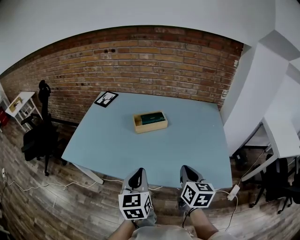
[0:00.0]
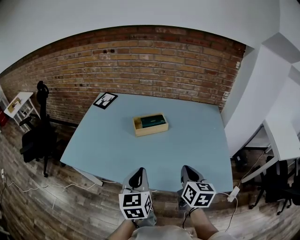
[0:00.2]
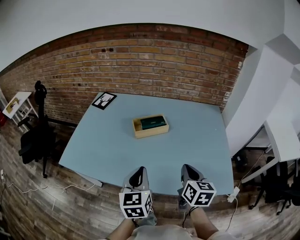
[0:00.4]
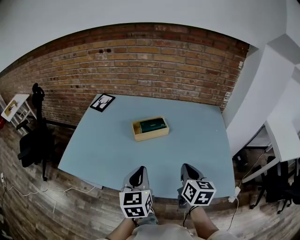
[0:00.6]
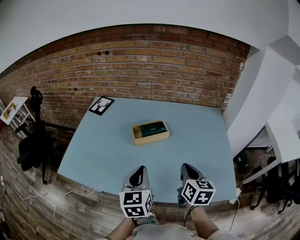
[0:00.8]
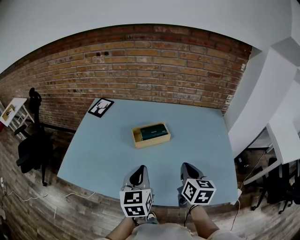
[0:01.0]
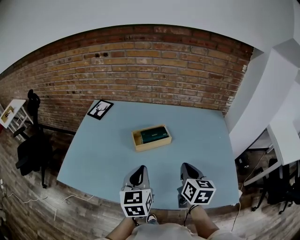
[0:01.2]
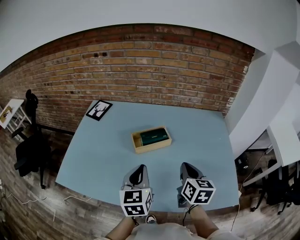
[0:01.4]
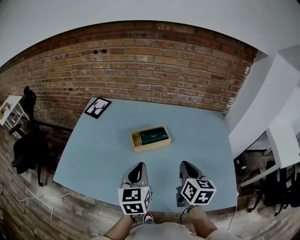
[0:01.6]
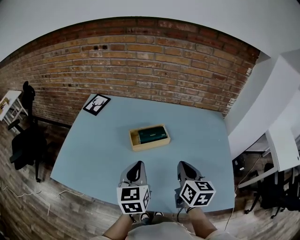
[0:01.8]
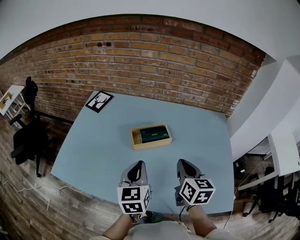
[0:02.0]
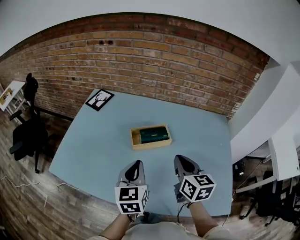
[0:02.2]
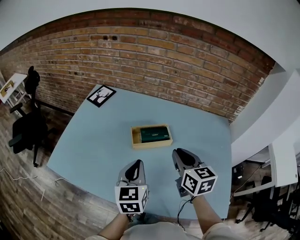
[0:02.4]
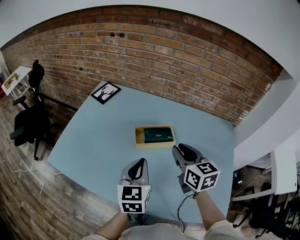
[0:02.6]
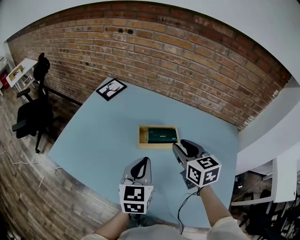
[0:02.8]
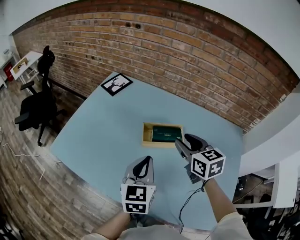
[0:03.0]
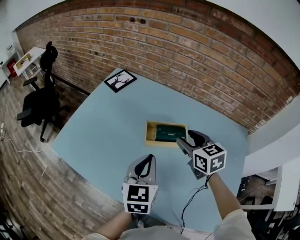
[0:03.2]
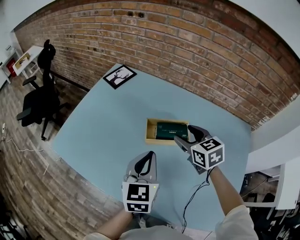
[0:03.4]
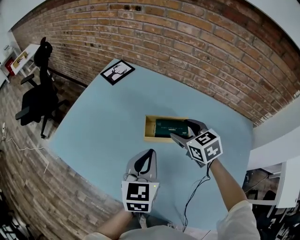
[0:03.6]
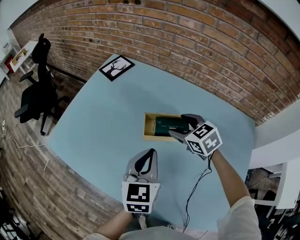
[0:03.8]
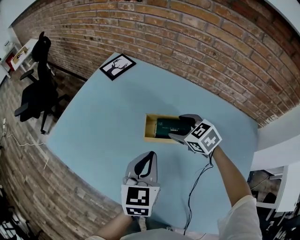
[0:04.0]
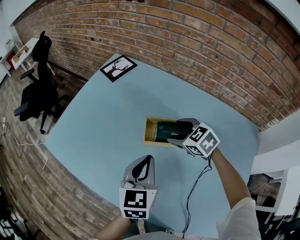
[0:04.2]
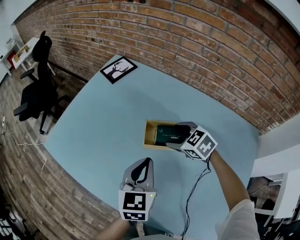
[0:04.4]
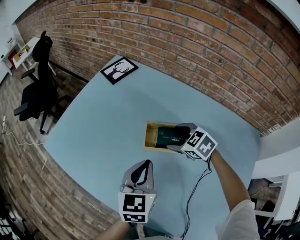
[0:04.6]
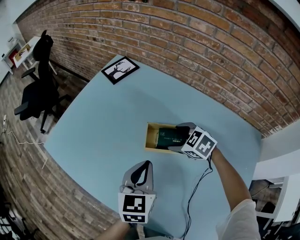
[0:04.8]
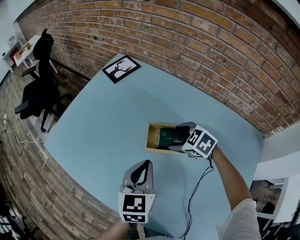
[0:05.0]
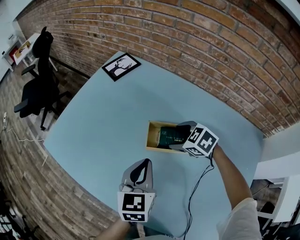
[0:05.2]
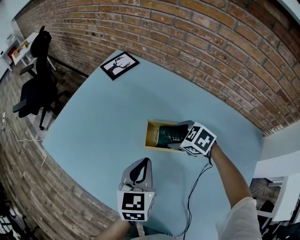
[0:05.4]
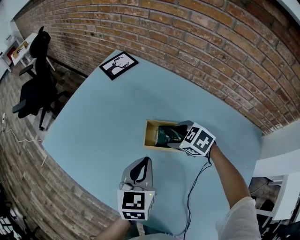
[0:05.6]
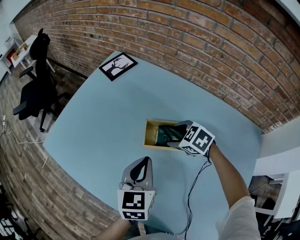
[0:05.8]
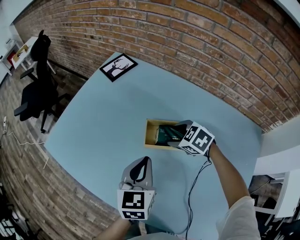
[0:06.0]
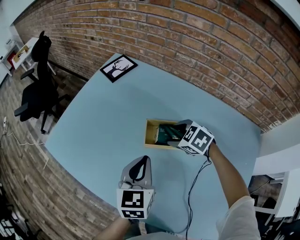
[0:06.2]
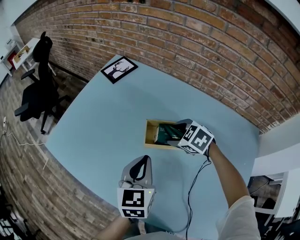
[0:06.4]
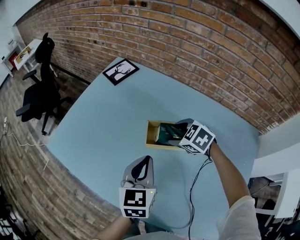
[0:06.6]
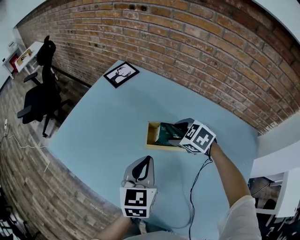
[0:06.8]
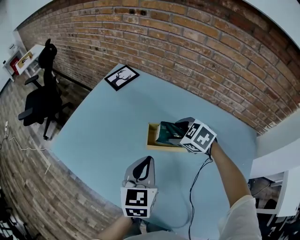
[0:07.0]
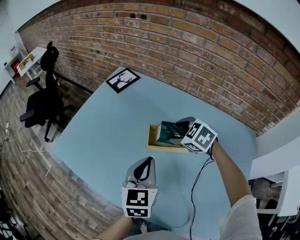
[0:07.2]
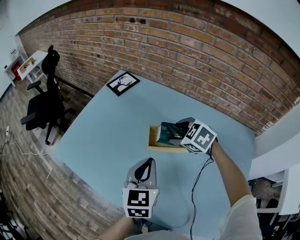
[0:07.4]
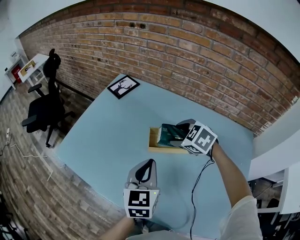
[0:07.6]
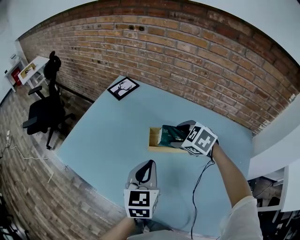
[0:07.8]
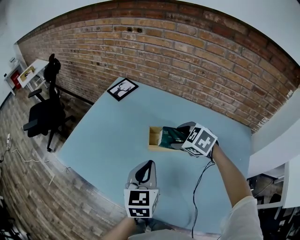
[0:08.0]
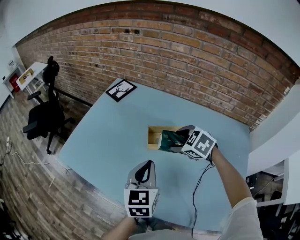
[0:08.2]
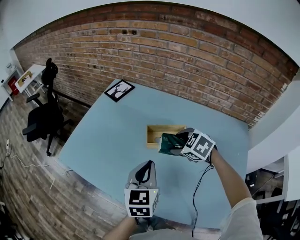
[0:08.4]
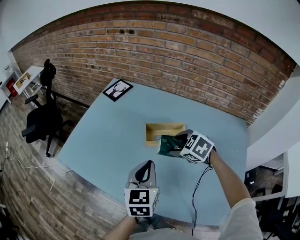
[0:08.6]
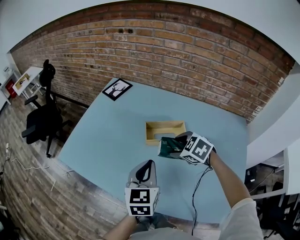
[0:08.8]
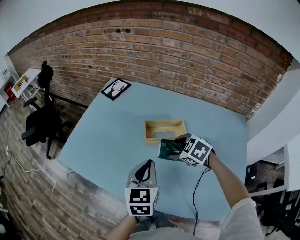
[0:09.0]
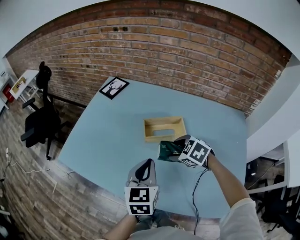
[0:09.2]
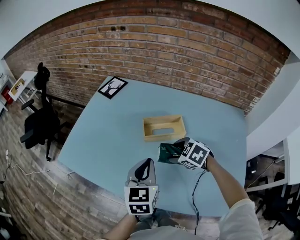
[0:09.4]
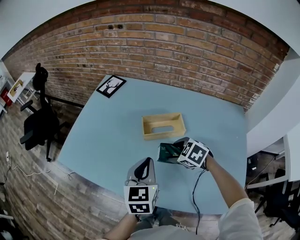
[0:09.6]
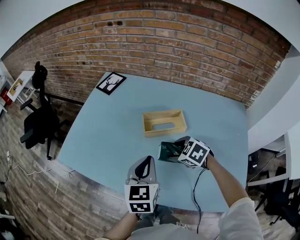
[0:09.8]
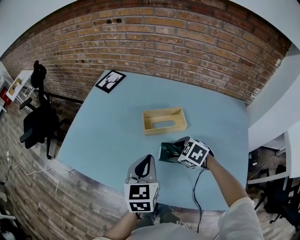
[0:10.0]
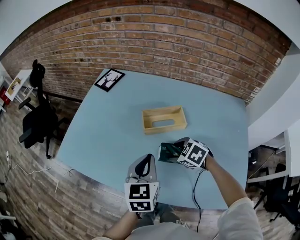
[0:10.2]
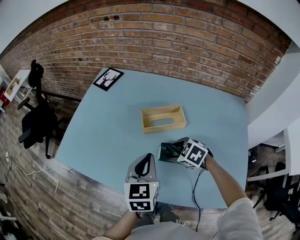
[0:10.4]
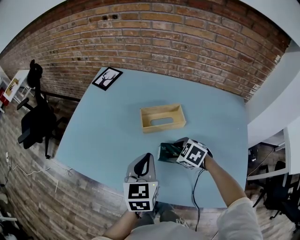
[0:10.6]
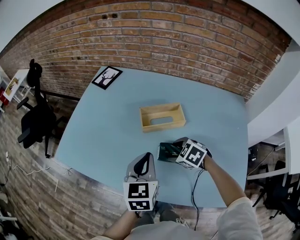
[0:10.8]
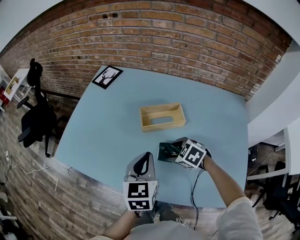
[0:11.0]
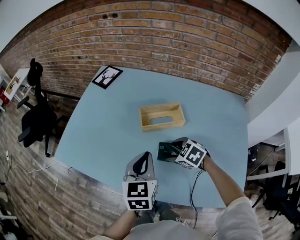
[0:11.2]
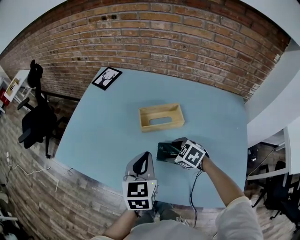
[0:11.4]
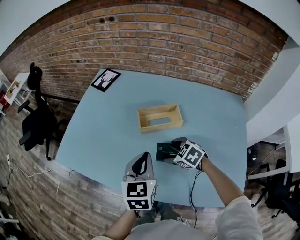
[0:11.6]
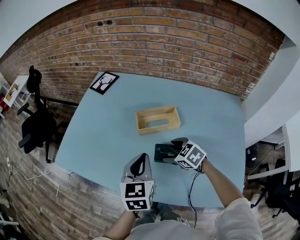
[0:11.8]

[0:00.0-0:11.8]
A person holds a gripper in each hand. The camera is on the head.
0:00.0 to 0:01.4: Both grippers move forward, about 20 cm.
0:01.4 to 0:03.0: The right gripper travels forward by about 15 cm, changes its angle by roughly 40 degrees, and opens its fingers; the left gripper is displaced forward by some 5 cm.
0:03.0 to 0:04.4: The left gripper moves downward and forward, some 10 cm. Meanwhile the right gripper travels downward and forward by roughly 20 cm, rotates about 40 degrees, and opens up.
0:04.4 to 0:06.0: The grippers make only small movements.
0:06.0 to 0:07.4: The left gripper shifts some 5 cm upward. Meanwhile the right gripper is displaced upward by roughly 10 cm.
0:07.4 to 0:08.8: The right gripper shifts roughly 10 cm backward, while the left gripper heads backward, covering approximately 5 cm.
0:08.8 to 0:10.4: The right gripper travels downward and backward by roughly 10 cm.
0:10.4 to 0:11.8: The grippers make only small movements.

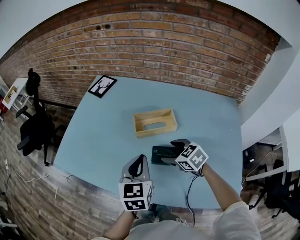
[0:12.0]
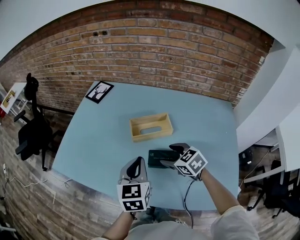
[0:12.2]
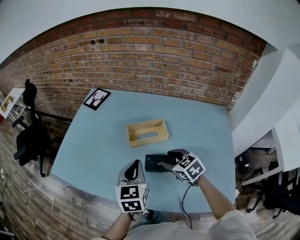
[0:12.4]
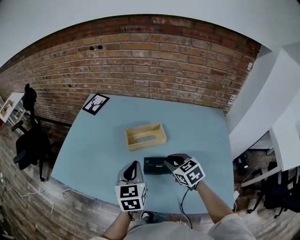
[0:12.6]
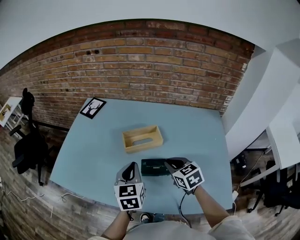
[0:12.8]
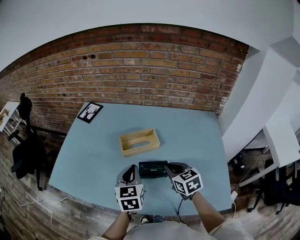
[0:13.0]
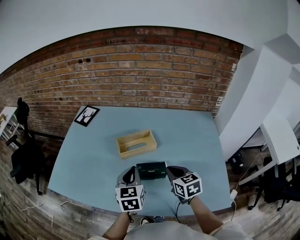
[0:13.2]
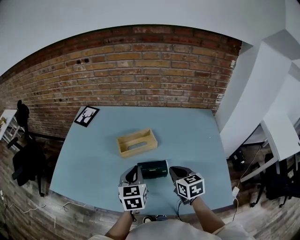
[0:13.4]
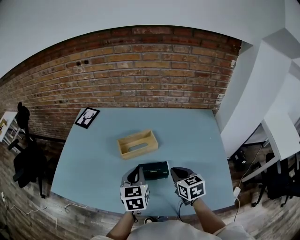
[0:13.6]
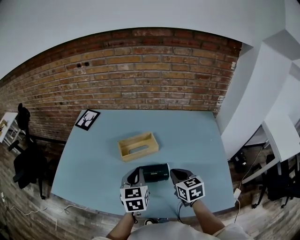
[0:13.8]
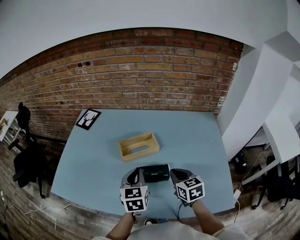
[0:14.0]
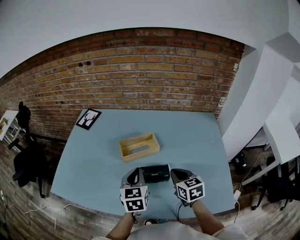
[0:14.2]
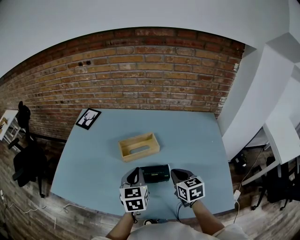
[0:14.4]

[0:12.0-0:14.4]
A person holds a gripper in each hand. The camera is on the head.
0:12.0 to 0:13.2: The right gripper travels to the right, backward and upward by approximately 10 cm, turns by about 40 degrees, and closes up.
0:13.2 to 0:14.4: The grippers stay close to where they were, moving slightly.

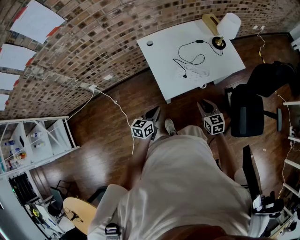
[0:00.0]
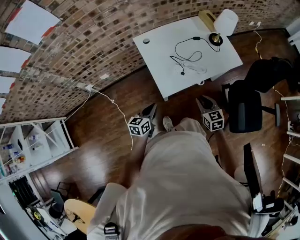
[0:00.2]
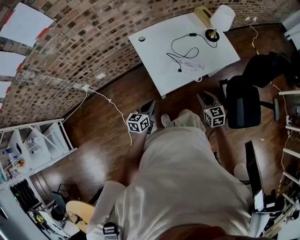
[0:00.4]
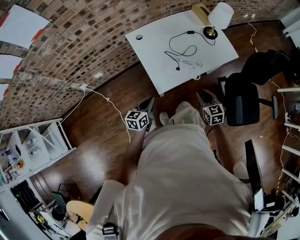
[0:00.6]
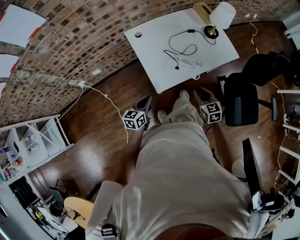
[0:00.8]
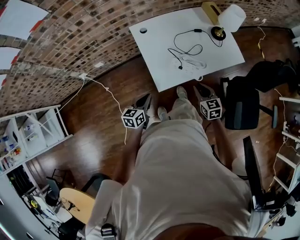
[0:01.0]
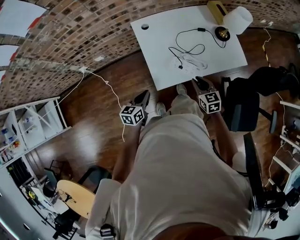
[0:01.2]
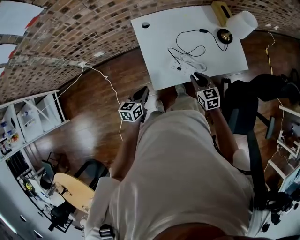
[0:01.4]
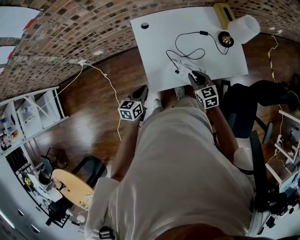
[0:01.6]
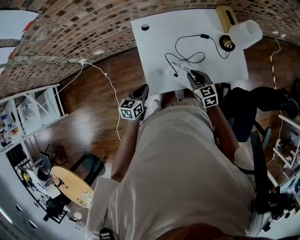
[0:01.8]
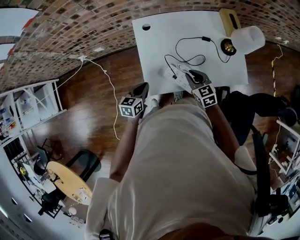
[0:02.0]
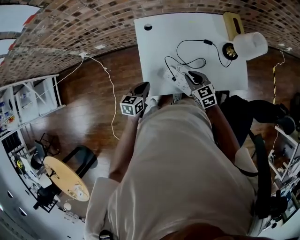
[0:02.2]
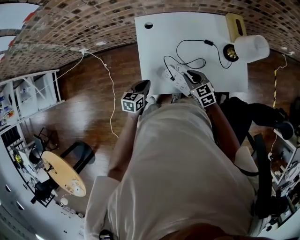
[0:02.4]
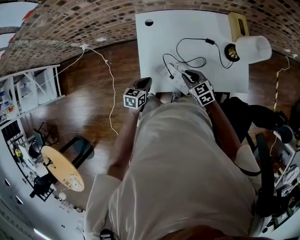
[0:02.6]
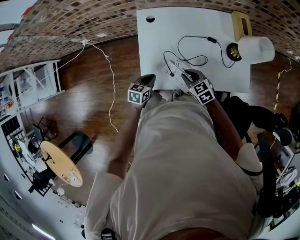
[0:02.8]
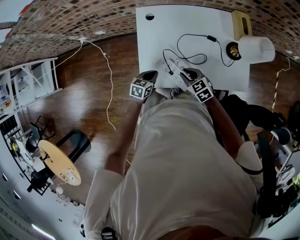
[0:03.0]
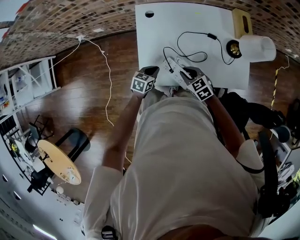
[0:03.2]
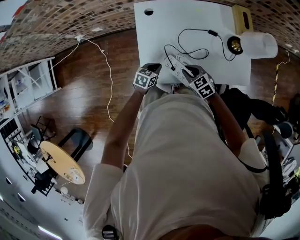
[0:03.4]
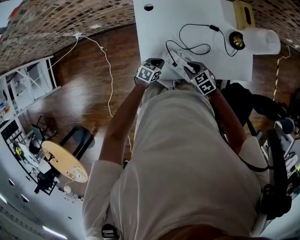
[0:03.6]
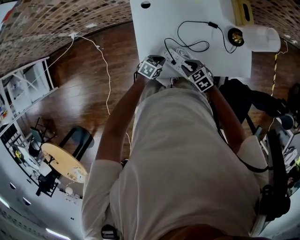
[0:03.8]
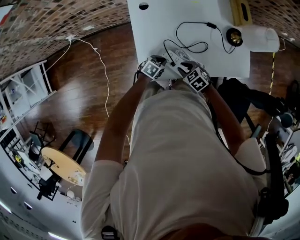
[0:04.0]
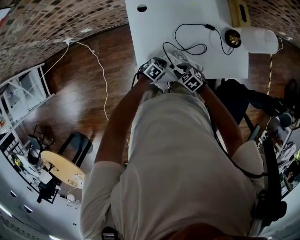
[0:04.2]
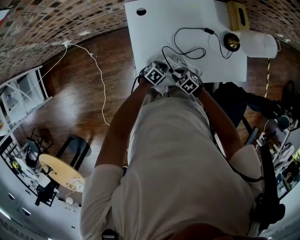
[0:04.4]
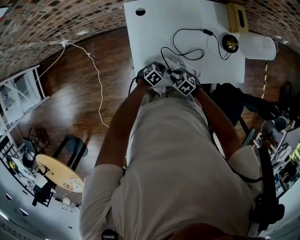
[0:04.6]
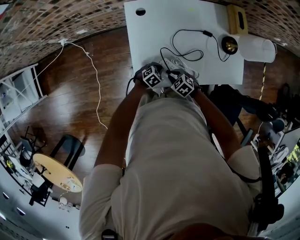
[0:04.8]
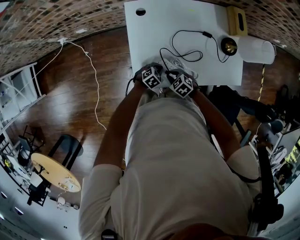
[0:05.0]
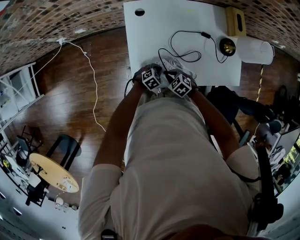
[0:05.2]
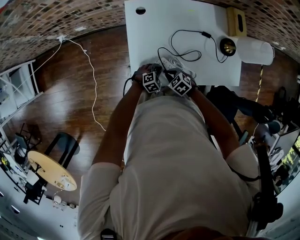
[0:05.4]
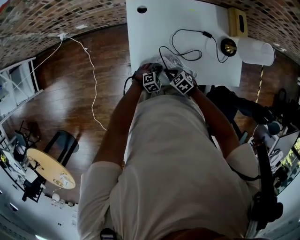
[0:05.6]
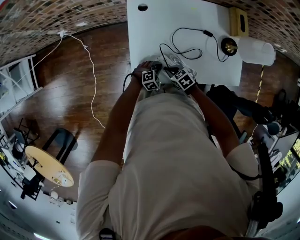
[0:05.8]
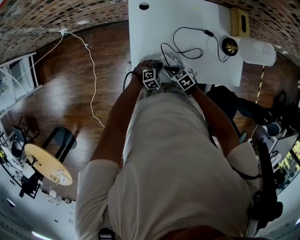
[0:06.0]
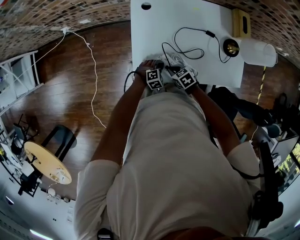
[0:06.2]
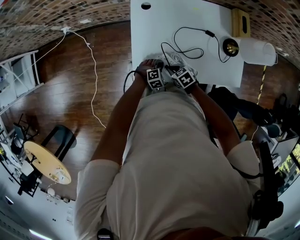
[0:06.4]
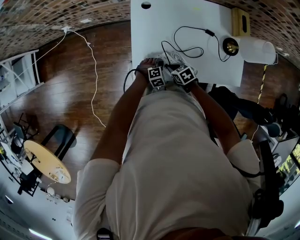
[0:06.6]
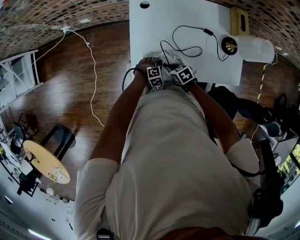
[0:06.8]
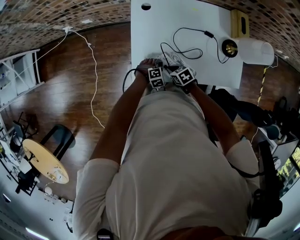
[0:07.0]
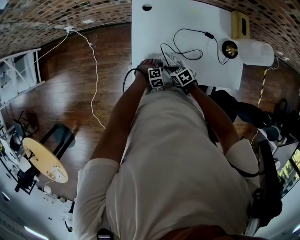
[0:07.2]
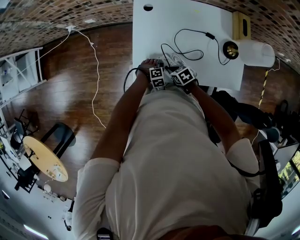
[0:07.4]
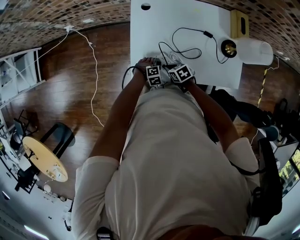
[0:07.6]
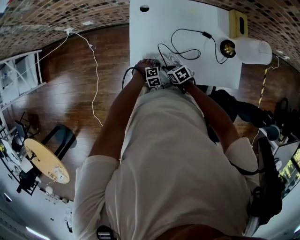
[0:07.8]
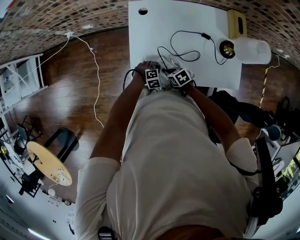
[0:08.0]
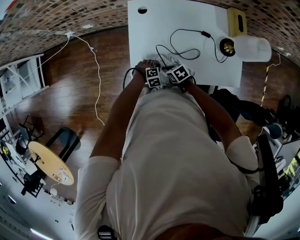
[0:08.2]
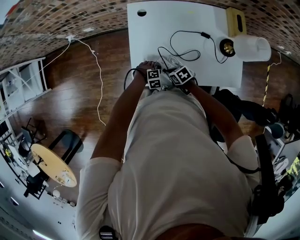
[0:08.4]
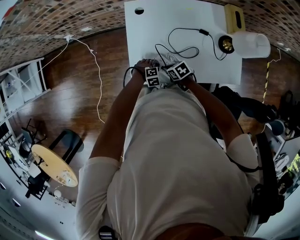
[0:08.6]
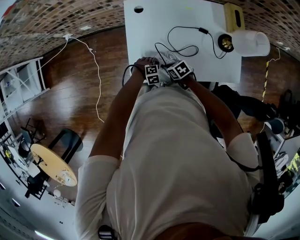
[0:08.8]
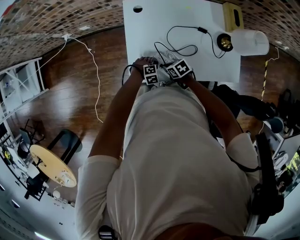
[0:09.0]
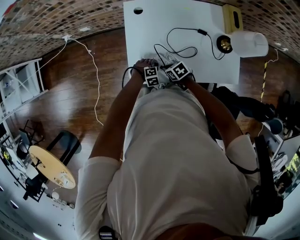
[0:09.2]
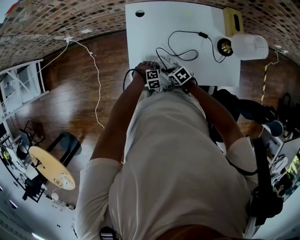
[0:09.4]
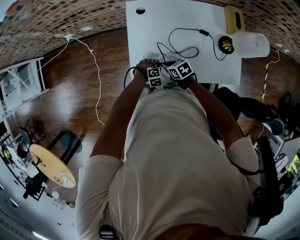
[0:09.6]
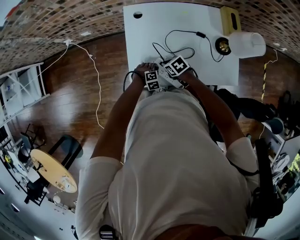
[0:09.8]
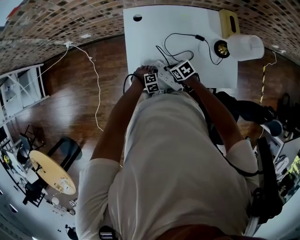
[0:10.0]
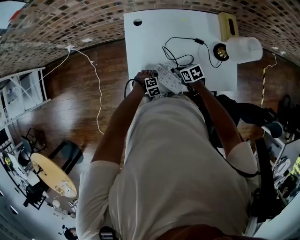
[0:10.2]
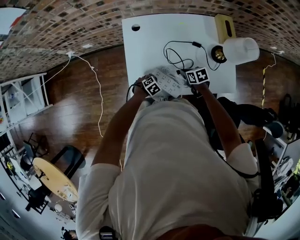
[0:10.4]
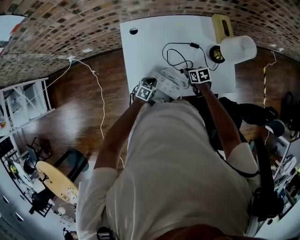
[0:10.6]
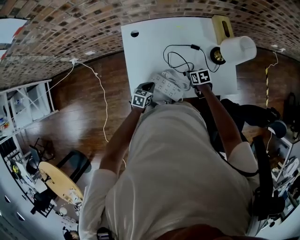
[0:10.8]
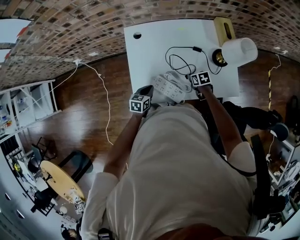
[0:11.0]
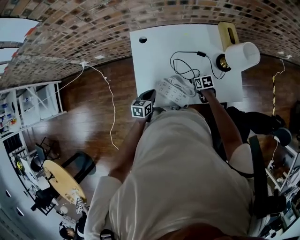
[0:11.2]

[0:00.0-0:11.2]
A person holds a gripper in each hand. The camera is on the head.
0:00.0 to 0:01.6: The left gripper shifts roughly 15 cm forward. The right gripper moves forward, approximately 20 cm.
0:01.6 to 0:03.2: The right gripper travels downward by some 5 cm, and swivels roughly 30 degrees, while the left gripper moves downward, to the right and forward, approximately 20 cm.
0:03.2 to 0:04.8: Both grippers move downward, about 10 cm. The left gripper rotates roughly 40 degrees.
0:04.8 to 0:06.4: The left gripper swivels some 30 degrees.
0:06.4 to 0:09.6: The grippers move only a little.
0:09.6 to 0:11.2: The right gripper shifts by about 20 cm, and rotates about 30 degrees. The left gripper shifts some 15 cm upward, and rotates around the line of its fingers by roughly 70 degrees, counterclockwise from behind.
